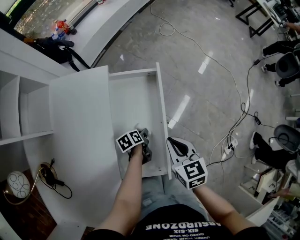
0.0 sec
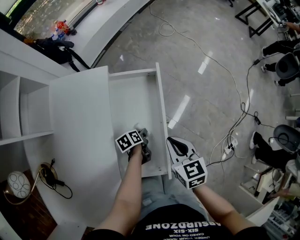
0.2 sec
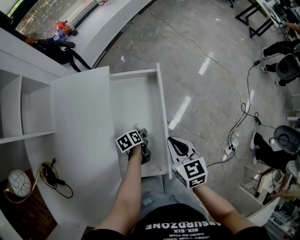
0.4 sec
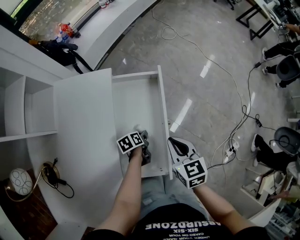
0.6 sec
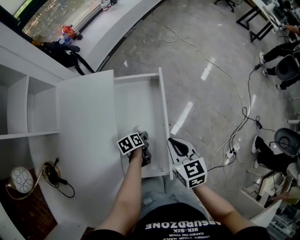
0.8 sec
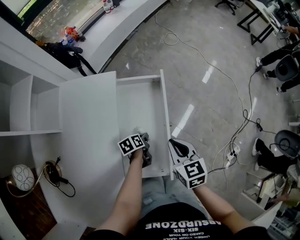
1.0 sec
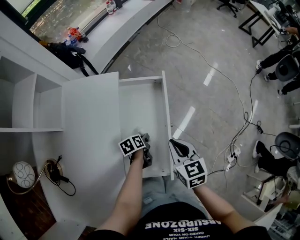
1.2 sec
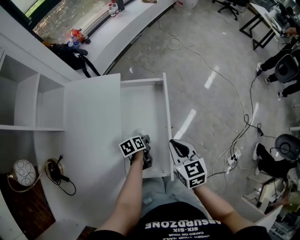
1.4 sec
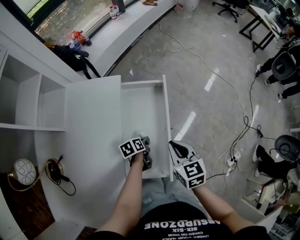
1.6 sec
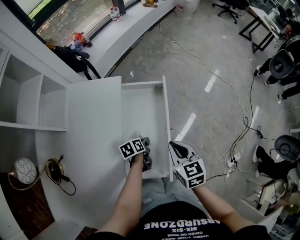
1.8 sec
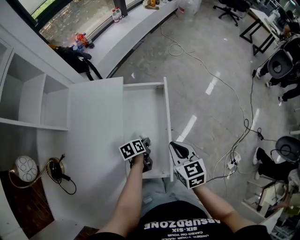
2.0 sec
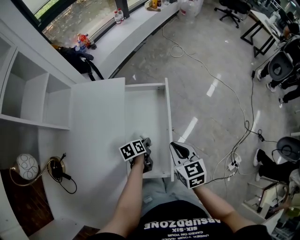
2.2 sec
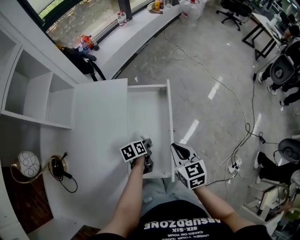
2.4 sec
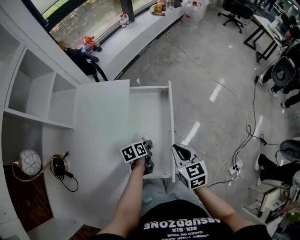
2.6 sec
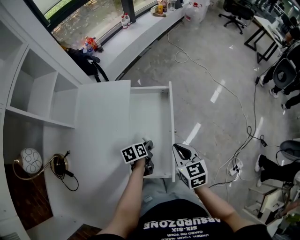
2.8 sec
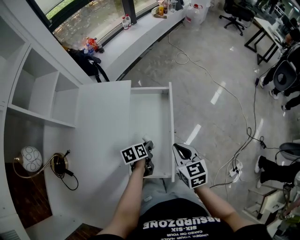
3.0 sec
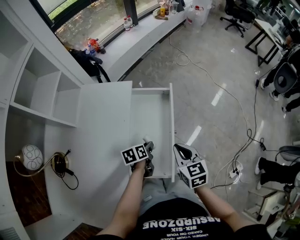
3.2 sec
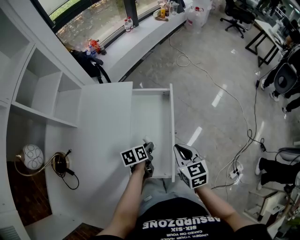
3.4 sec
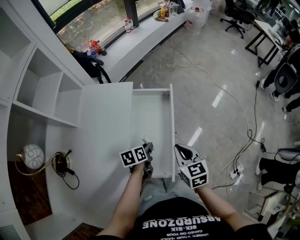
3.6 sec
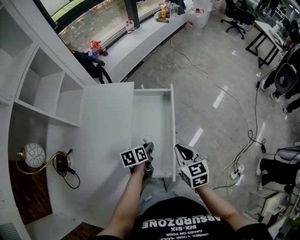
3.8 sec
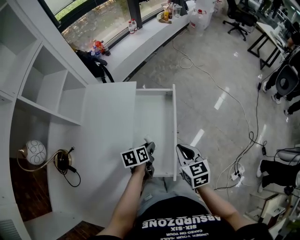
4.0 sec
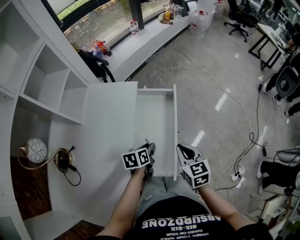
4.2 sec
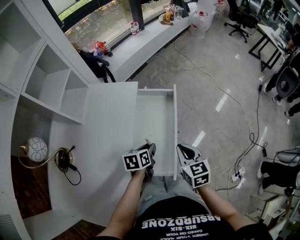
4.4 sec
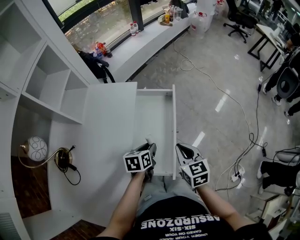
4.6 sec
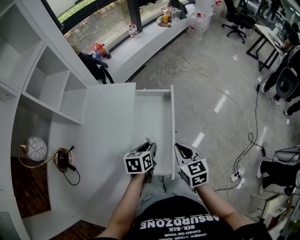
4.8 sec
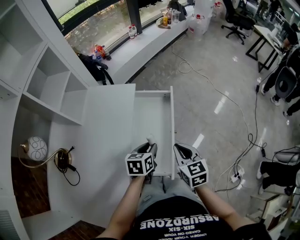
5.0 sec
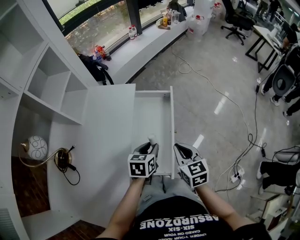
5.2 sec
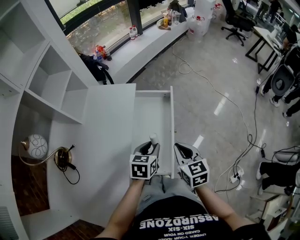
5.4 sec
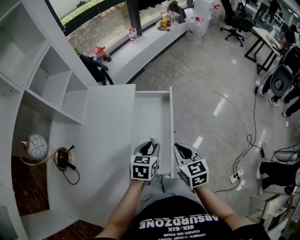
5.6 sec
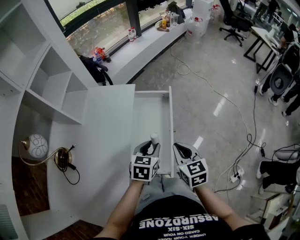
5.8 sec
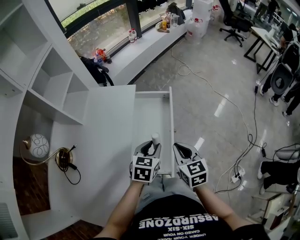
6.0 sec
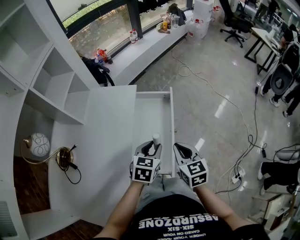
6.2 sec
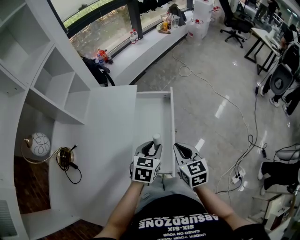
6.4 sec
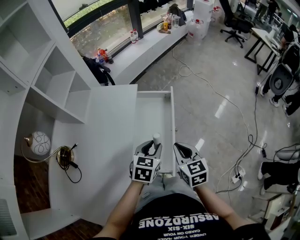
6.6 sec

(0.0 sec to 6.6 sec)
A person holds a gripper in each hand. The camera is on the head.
0.0 sec - 1.6 sec: The left gripper travels upward by roughly 5 cm.
1.6 sec - 3.2 sec: The left gripper shifts about 10 cm upward.
3.2 sec - 5.0 sec: The left gripper heads upward, covering approximately 10 cm, and turns by approximately 30 degrees.
5.0 sec - 6.6 sec: The left gripper heads upward, covering approximately 5 cm, and rotates roughly 20 degrees.

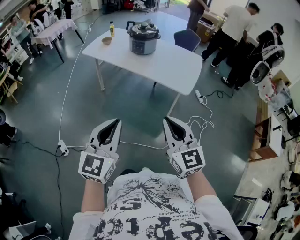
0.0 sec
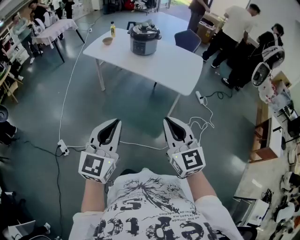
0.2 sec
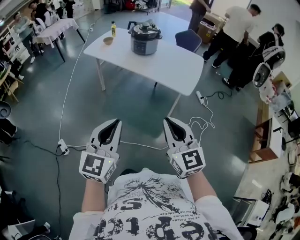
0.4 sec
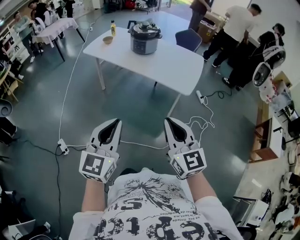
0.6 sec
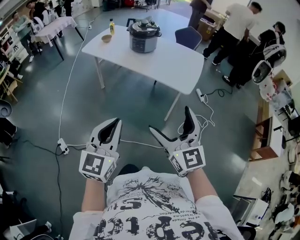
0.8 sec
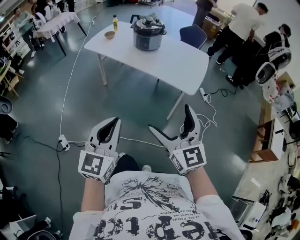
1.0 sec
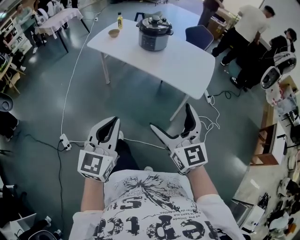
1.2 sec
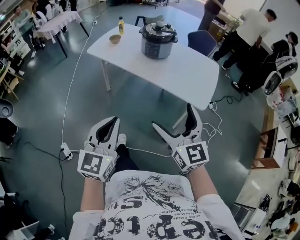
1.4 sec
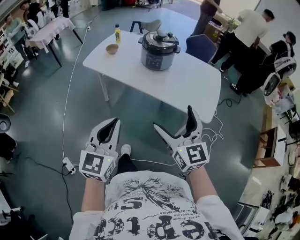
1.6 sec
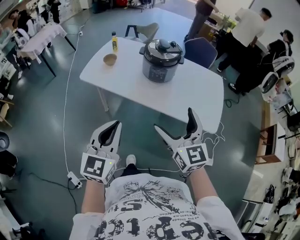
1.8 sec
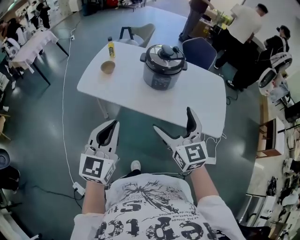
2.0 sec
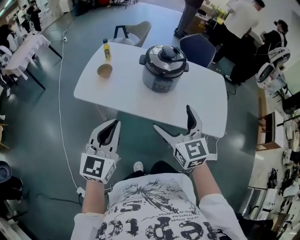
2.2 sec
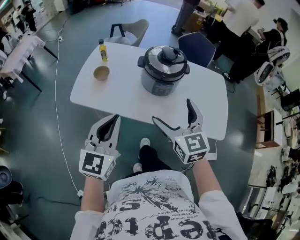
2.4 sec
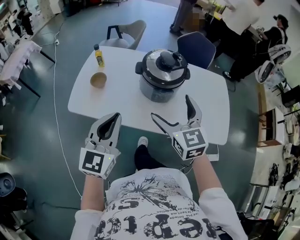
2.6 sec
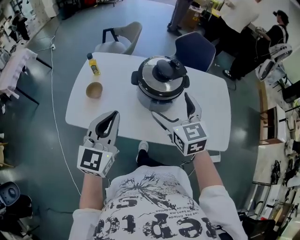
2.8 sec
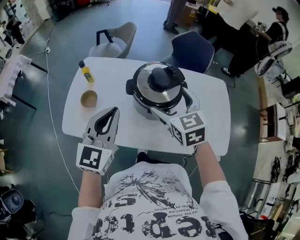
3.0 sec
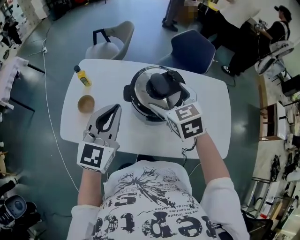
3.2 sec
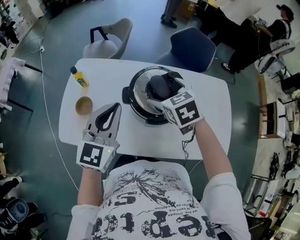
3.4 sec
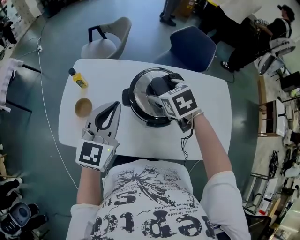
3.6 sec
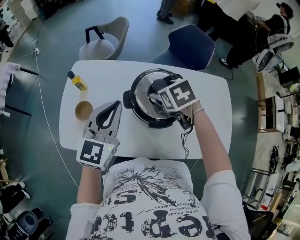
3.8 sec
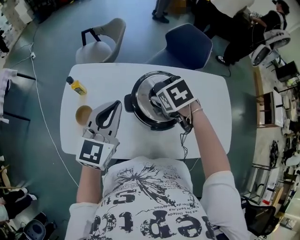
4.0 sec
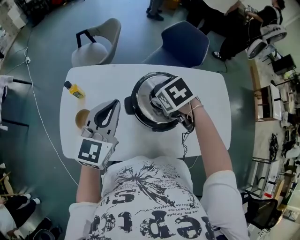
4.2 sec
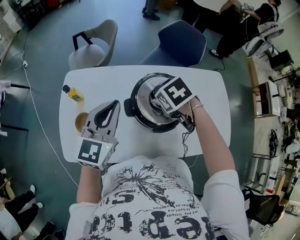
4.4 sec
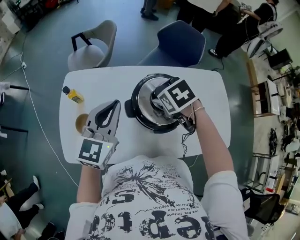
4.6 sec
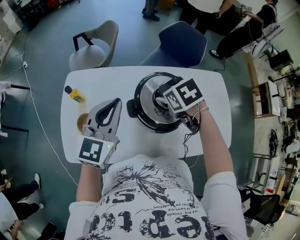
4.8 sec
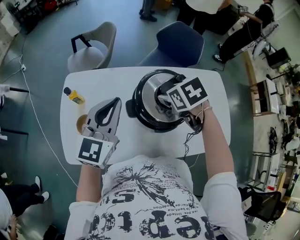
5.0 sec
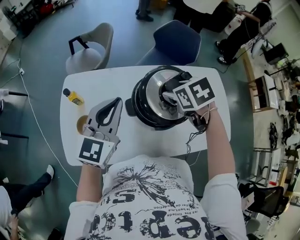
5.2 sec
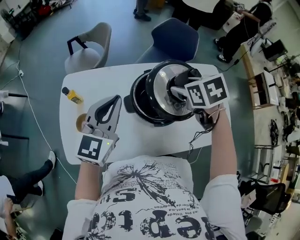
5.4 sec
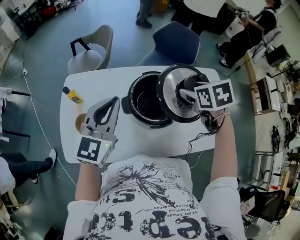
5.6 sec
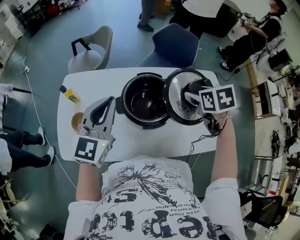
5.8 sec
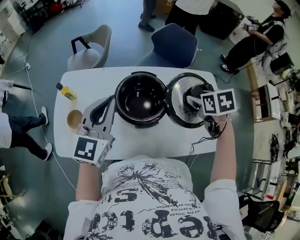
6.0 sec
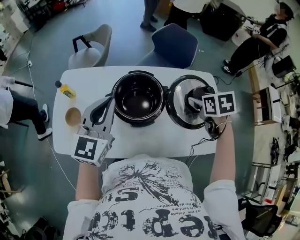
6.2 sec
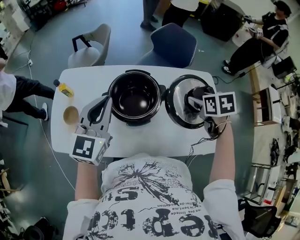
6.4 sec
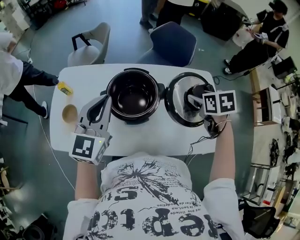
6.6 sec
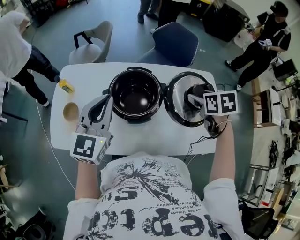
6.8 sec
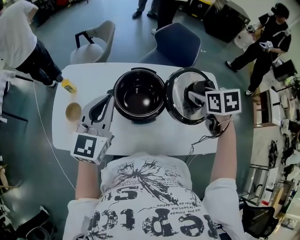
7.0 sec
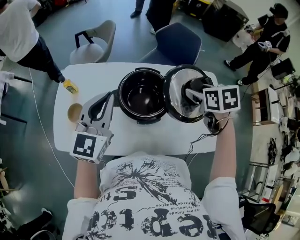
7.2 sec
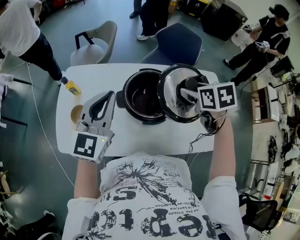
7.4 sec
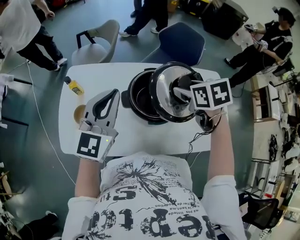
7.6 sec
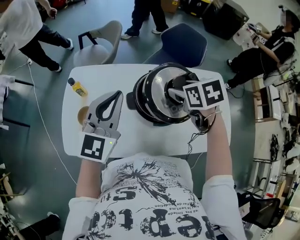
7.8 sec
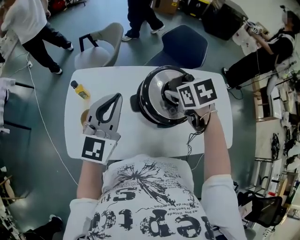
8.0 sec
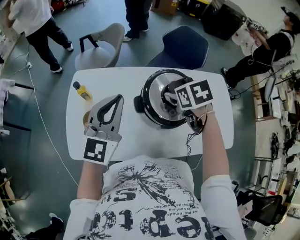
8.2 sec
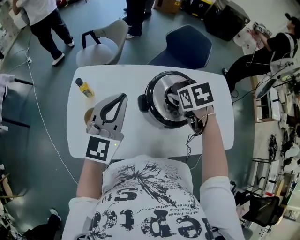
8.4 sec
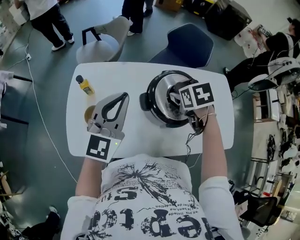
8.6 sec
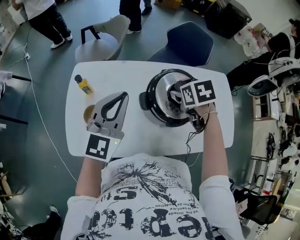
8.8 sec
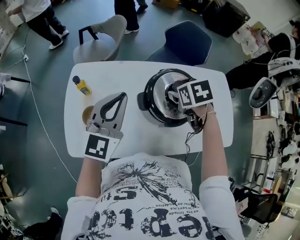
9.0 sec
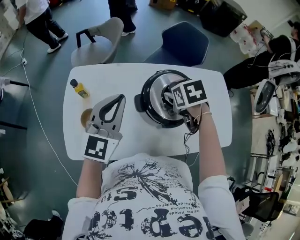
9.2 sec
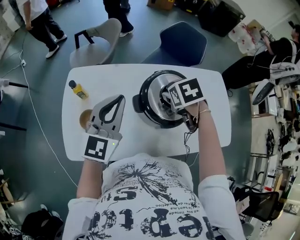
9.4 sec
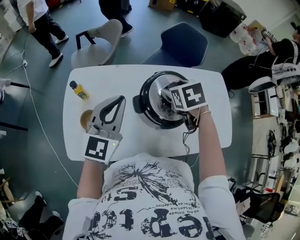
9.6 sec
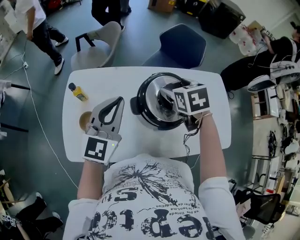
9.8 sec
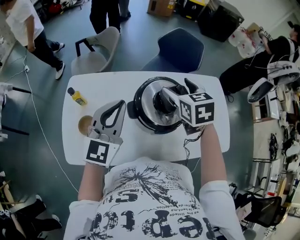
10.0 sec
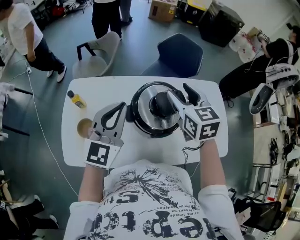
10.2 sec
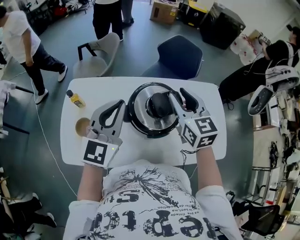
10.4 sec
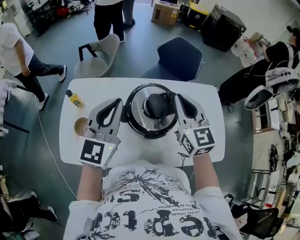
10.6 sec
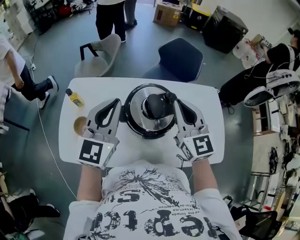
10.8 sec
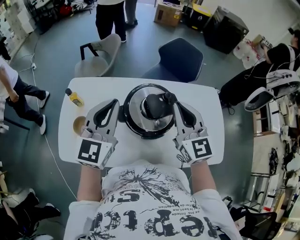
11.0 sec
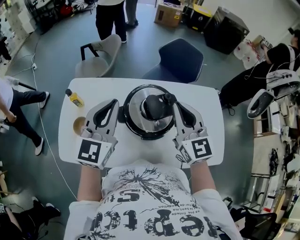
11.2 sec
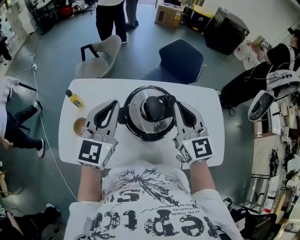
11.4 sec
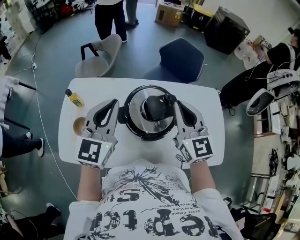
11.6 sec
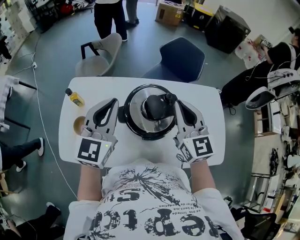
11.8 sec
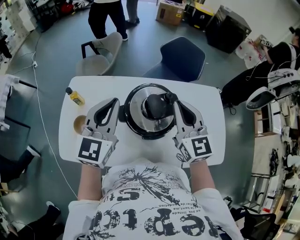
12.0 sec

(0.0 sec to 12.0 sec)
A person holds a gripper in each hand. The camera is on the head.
0.0 sec - 1.6 sec: The right gripper goes some 35 cm forward, and opens; the left gripper is displaced forward and to the left by approximately 35 cm.
1.6 sec - 3.0 sec: The pair of grippers is taken forward, some 60 cm. The left gripper swivels about 20 degrees. The right gripper swivels some 30 degrees.
3.0 sec - 4.4 sec: The right gripper moves forward and downward, about 15 cm, tilts its fingers approximately 40 degrees downward, and closes. The left gripper heads forward, covering approximately 20 cm.
4.4 sec - 6.0 sec: The left gripper is displaced to the right by about 5 cm. Meanwhile the right gripper heads to the right, covering approximately 25 cm, and rotates some 20 degrees.
6.0 sec - 7.6 sec: The right gripper heads to the left, covering about 15 cm. The left gripper shifts roughly 5 cm to the left.
7.6 sec - 9.0 sec: The right gripper goes some 10 cm to the left and downward; the left gripper is displaced to the left by roughly 5 cm.
9.0 sec - 10.4 sec: The right gripper moves upward and to the right, some 15 cm, and angles its fingers upward, by about 50 degrees; the left gripper goes about 10 cm to the right.
10.4 sec - 12.0 sec: The grippers make only small movements.

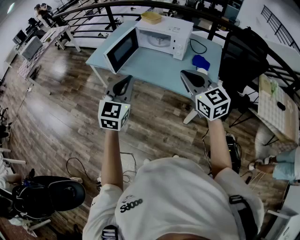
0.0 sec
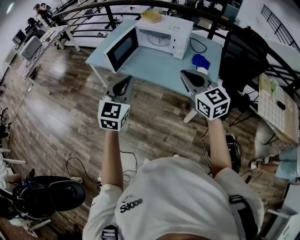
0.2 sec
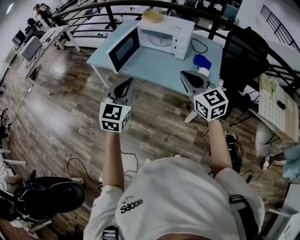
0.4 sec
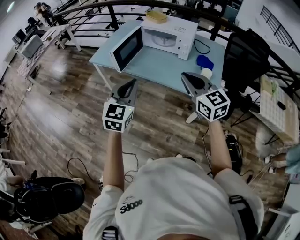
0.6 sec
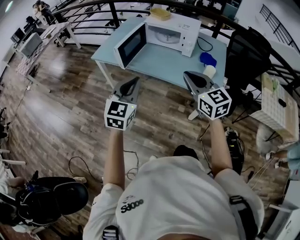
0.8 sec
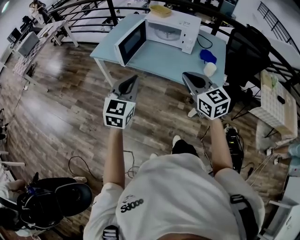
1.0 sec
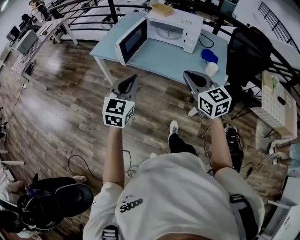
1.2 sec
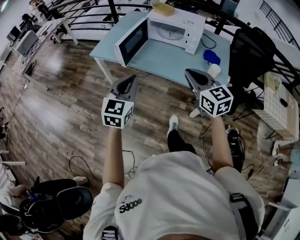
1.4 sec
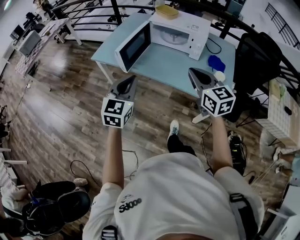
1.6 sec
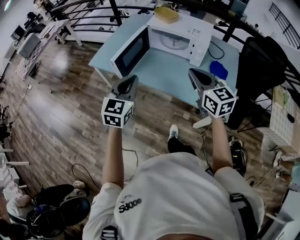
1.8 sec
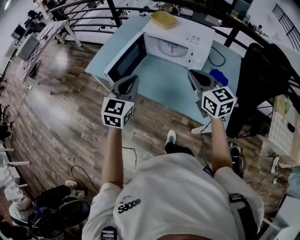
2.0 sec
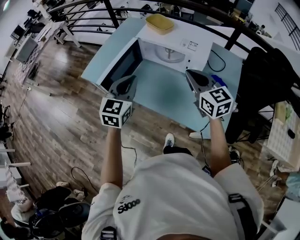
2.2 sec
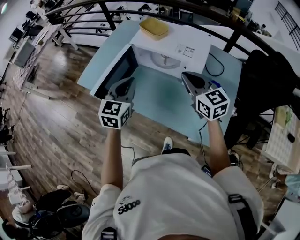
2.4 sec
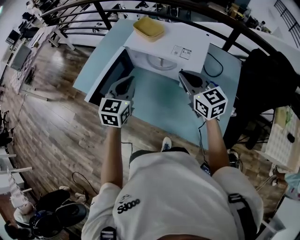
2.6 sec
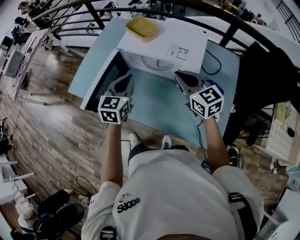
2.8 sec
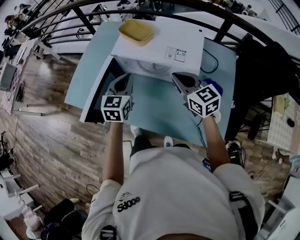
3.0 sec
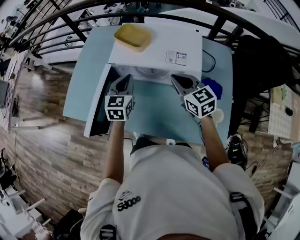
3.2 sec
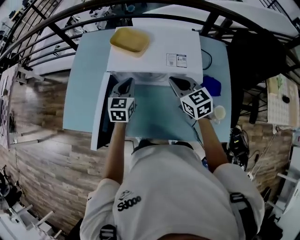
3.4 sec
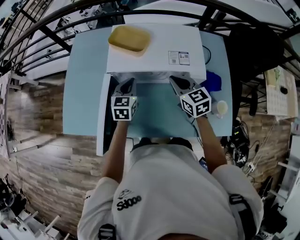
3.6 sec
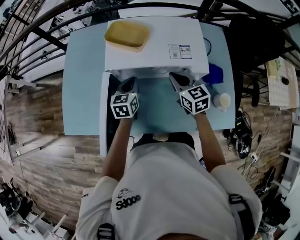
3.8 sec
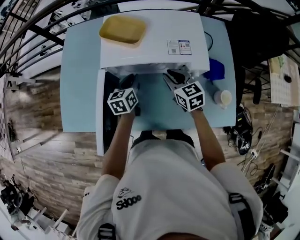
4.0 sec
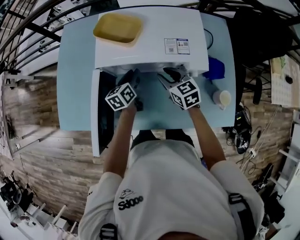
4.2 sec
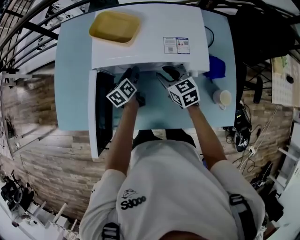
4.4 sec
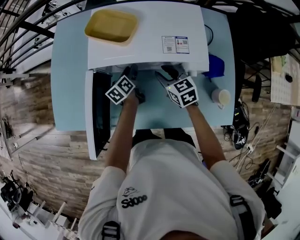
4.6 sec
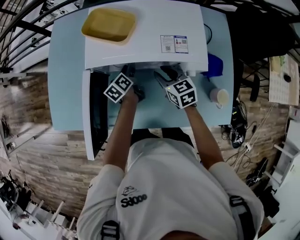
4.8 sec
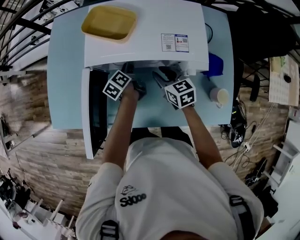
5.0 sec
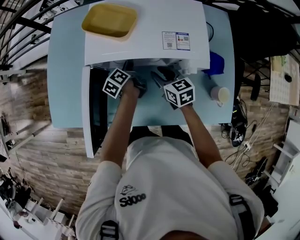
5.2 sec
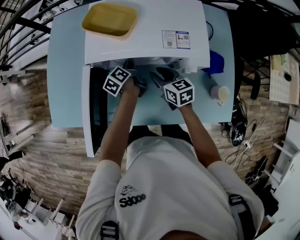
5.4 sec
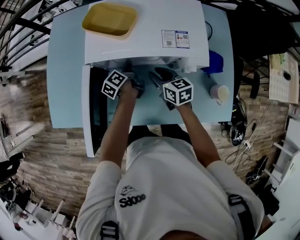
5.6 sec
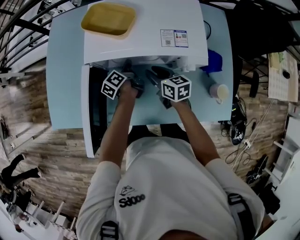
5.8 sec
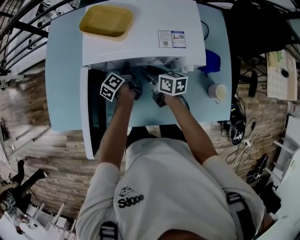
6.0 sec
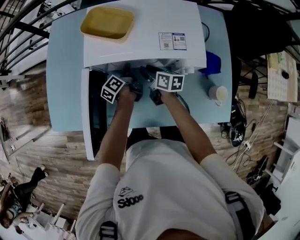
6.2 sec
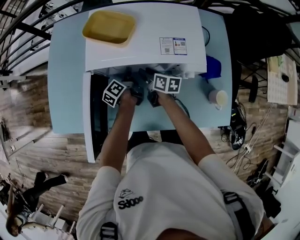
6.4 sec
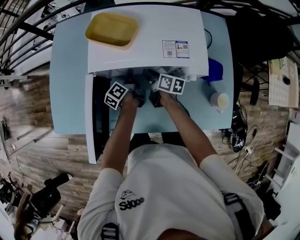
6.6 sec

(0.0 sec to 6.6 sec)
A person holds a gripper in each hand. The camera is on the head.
0.0 sec - 1.6 sec: The left gripper shifts some 15 cm forward, to the left and downward. The right gripper moves forward and to the left, roughly 15 cm.
1.6 sec - 3.2 sec: The two grippers travel together, forward, approximately 50 cm.
3.2 sec - 5.0 sec: The right gripper is displaced downward by some 20 cm, changes its angle by about 20 degrees, and opens its fingers, while the left gripper travels downward and forward by approximately 25 cm, rolls counterclockwise, seen from behind, by roughly 60 degrees, and opens its fingers.
5.0 sec - 6.6 sec: The left gripper closes up, while the right gripper travels downward and forward by some 10 cm, and twists roughly 40 degrees clockwise, seen from behind.
